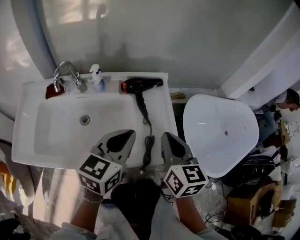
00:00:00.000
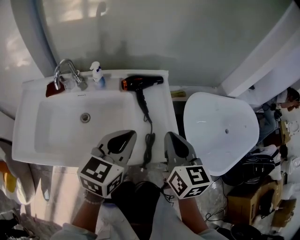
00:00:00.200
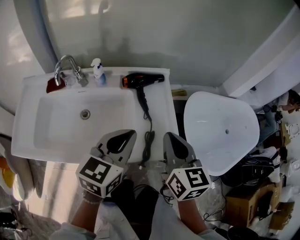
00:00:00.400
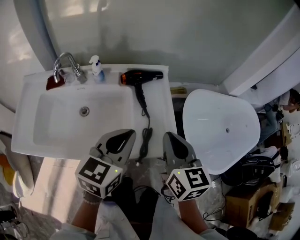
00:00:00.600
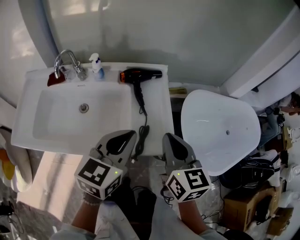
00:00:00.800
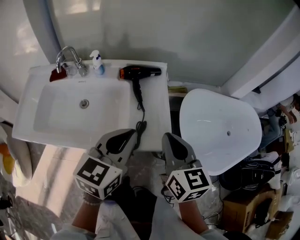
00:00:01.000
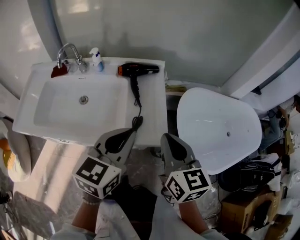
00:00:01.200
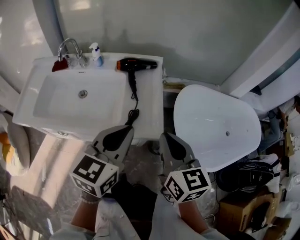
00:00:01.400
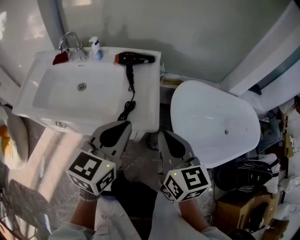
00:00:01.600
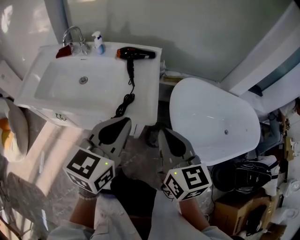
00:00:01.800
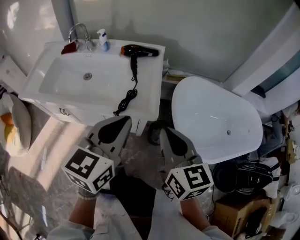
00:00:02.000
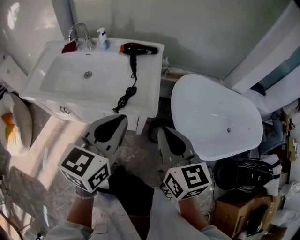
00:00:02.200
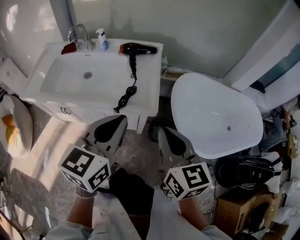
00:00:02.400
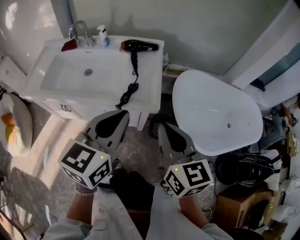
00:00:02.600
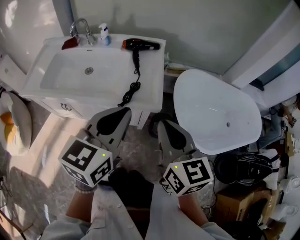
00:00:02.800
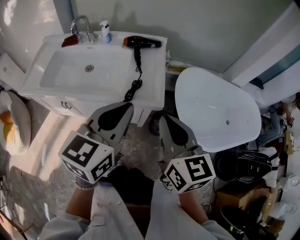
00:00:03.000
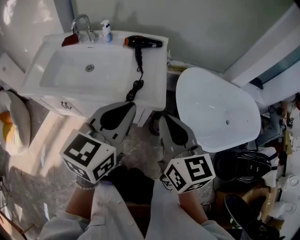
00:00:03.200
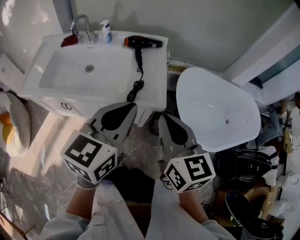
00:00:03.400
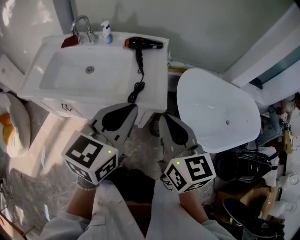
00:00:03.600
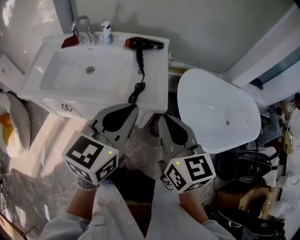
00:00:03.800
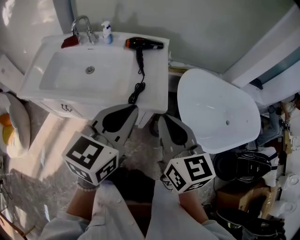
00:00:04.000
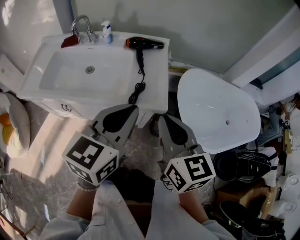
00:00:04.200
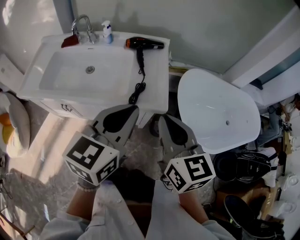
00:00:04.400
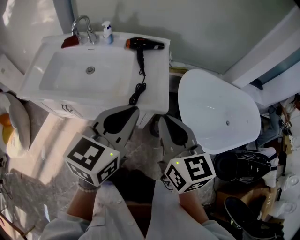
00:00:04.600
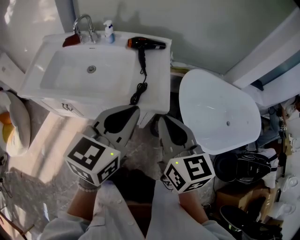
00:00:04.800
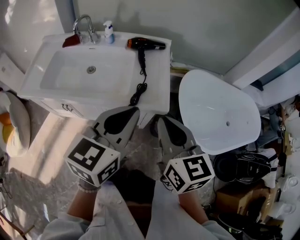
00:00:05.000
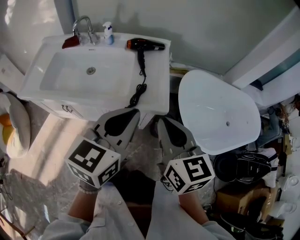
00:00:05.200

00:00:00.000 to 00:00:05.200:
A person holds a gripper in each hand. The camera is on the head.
00:00:00.000 to 00:00:01.800: The two grippers go some 25 cm backward and to the right.
00:00:01.800 to 00:00:03.400: The right gripper travels to the left by about 5 cm, while the left gripper changes place by some 5 cm.
00:00:03.400 to 00:00:05.200: The grippers move only a little.

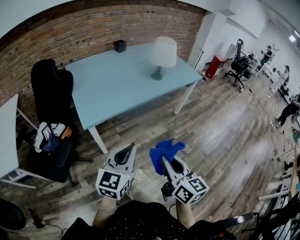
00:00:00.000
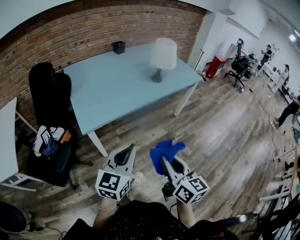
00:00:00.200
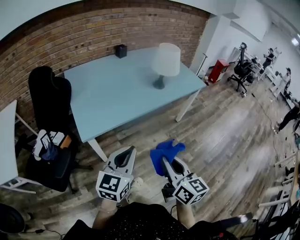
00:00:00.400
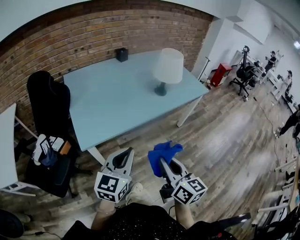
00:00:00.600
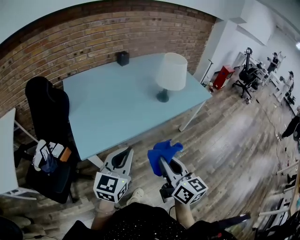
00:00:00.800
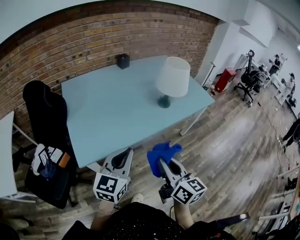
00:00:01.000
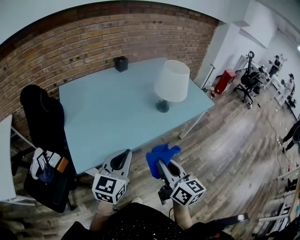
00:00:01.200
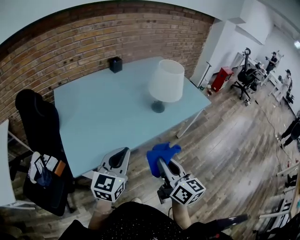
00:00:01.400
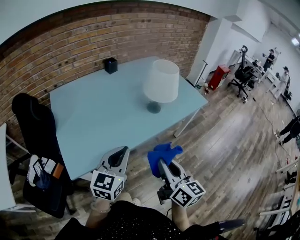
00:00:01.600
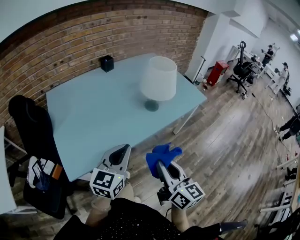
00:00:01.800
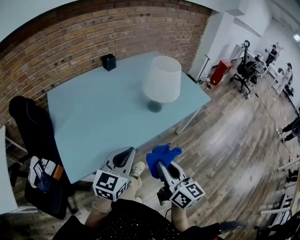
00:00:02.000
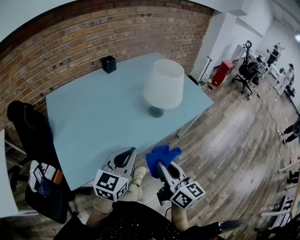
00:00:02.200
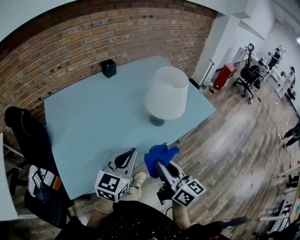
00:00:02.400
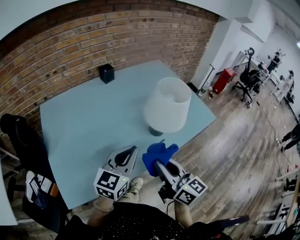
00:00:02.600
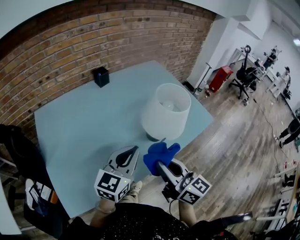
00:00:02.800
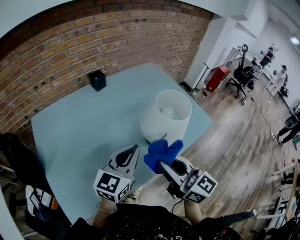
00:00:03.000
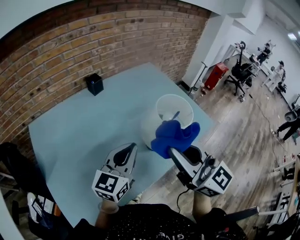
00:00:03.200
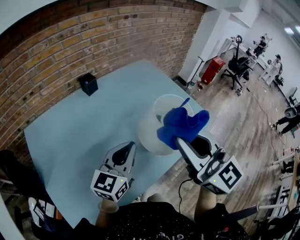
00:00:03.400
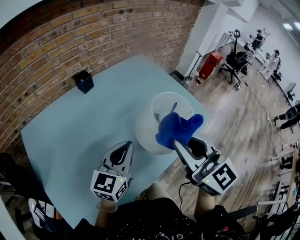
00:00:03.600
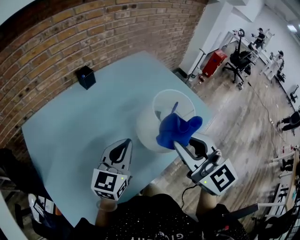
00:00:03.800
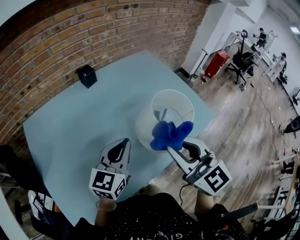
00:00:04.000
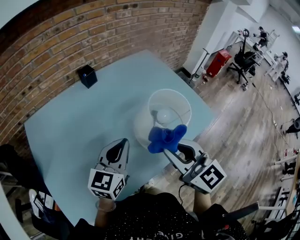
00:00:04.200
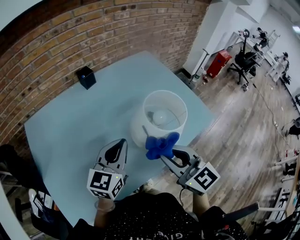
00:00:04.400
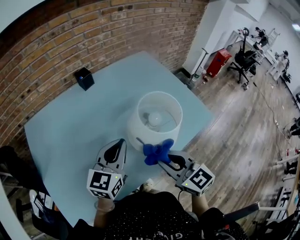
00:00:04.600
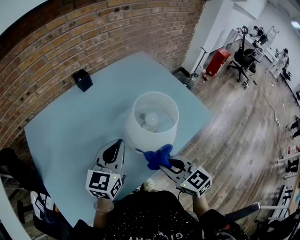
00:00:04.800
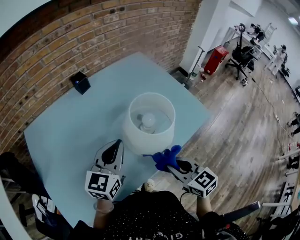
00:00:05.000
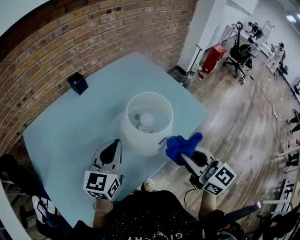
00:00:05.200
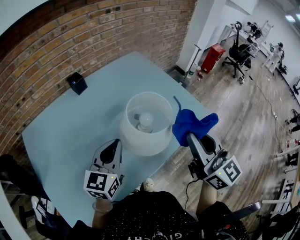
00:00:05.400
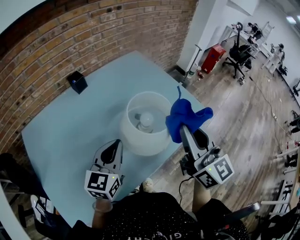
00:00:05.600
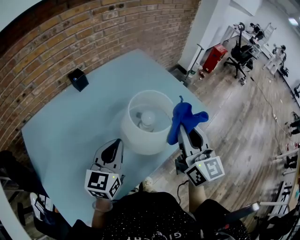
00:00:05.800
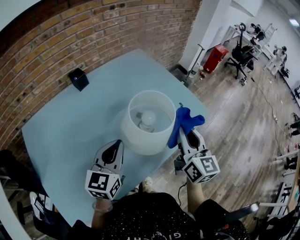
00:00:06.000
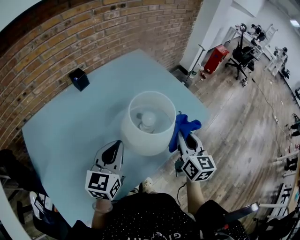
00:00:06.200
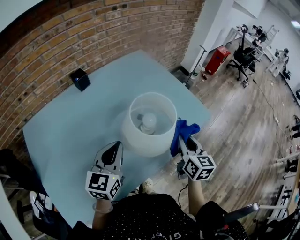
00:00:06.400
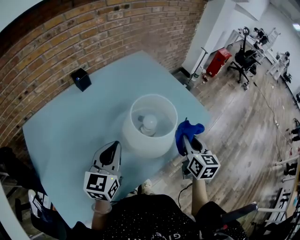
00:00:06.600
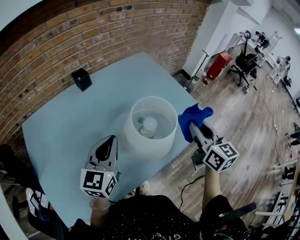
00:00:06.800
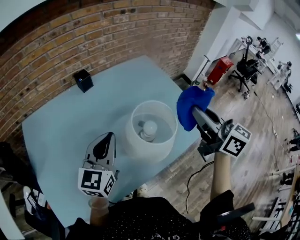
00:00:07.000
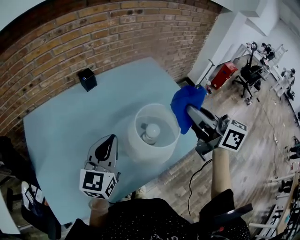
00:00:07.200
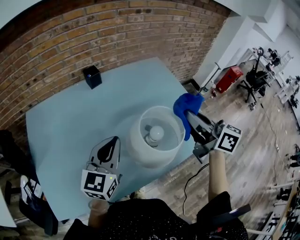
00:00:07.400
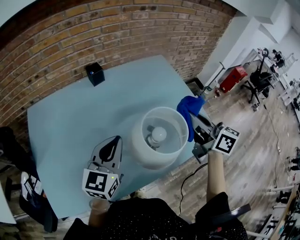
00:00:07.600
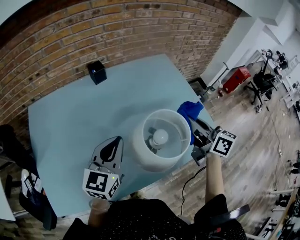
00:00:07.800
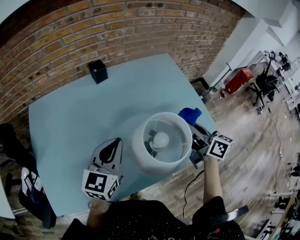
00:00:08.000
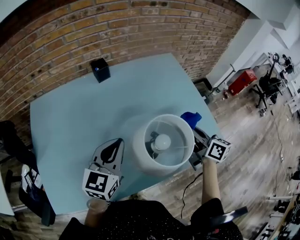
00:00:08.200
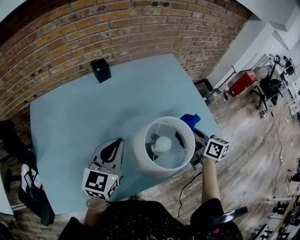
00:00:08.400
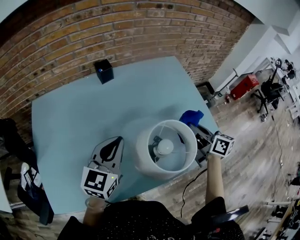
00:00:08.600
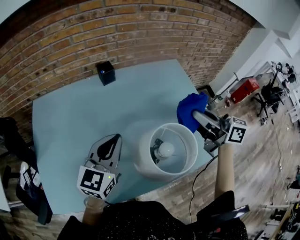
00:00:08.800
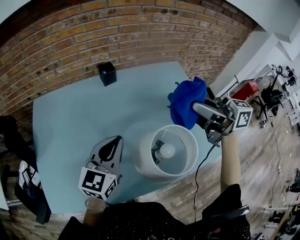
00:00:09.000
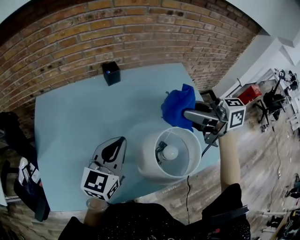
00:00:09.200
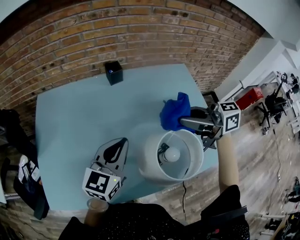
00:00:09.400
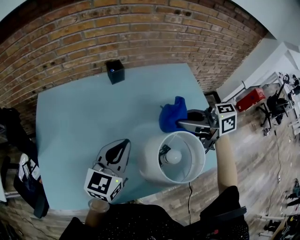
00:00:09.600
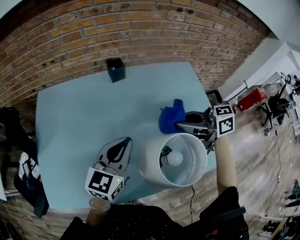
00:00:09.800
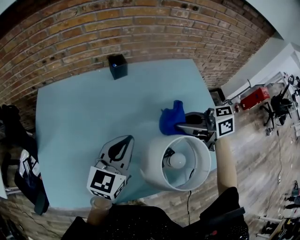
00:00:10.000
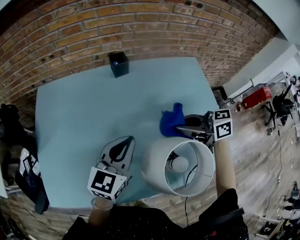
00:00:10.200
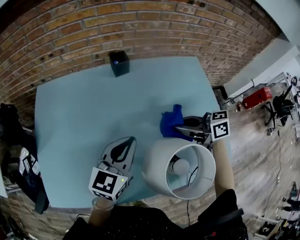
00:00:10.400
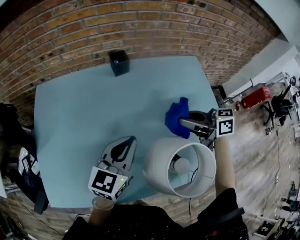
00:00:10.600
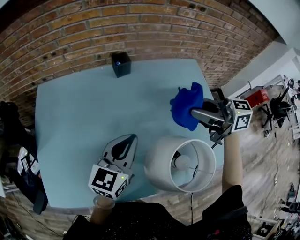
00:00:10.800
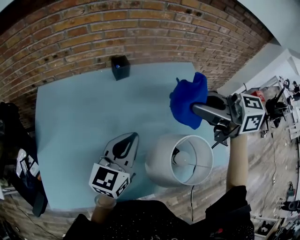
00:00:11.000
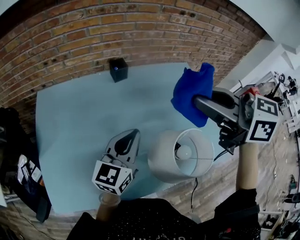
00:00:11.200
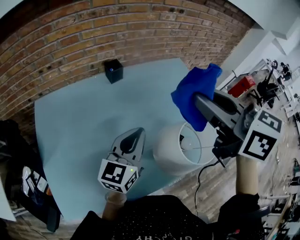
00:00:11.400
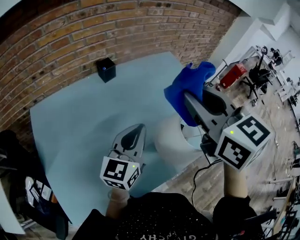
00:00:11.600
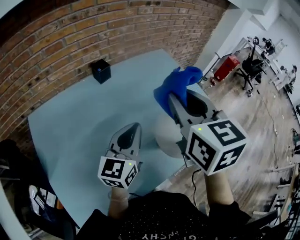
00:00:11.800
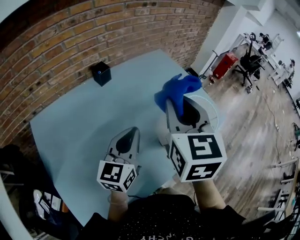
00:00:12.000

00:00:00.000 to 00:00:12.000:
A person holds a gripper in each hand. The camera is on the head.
00:00:00.000 to 00:00:01.600: Both grippers travel together forward, some 30 cm.
00:00:01.600 to 00:00:03.000: The two grippers go approximately 25 cm forward. The right gripper rotates some 20 degrees.
00:00:03.000 to 00:00:04.400: The left gripper goes approximately 5 cm forward, while the right gripper moves forward and to the right, approximately 10 cm, travels upward and back again, approximately 10 cm each way, and changes its angle by some 20 degrees.
00:00:04.400 to 00:00:06.000: The right gripper goes up and down, roughly 20 cm each way, reversing 2 times, and swivels about 40 degrees.
00:00:06.000 to 00:00:07.600: The right gripper goes up and down, about 20 cm each way, reversing 2 times, and changes its angle by roughly 40 degrees. Meanwhile the left gripper shifts by approximately 5 cm.
00:00:07.600 to 00:00:09.000: The right gripper goes approximately 10 cm forward and to the left, reaches about 15 cm downward, then returns, and rotates approximately 40 degrees.
00:00:09.000 to 00:00:10.400: The right gripper shifts roughly 20 cm downward, and changes its angle by roughly 30 degrees, while the left gripper changes place by some 5 cm.
00:00:10.400 to 00:00:12.000: The right gripper shifts roughly 20 cm upward, and swivels roughly 90 degrees; the left gripper ends up approximately 10 cm from where it was.

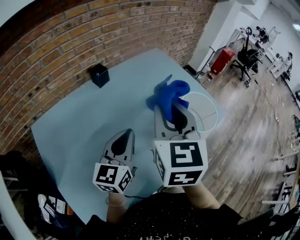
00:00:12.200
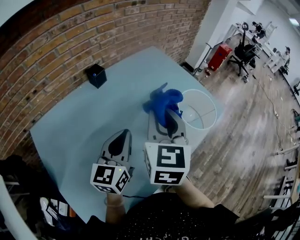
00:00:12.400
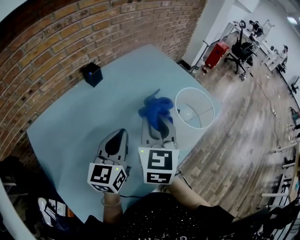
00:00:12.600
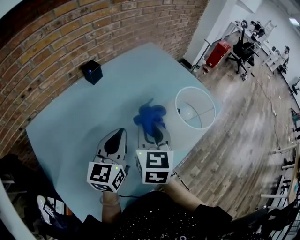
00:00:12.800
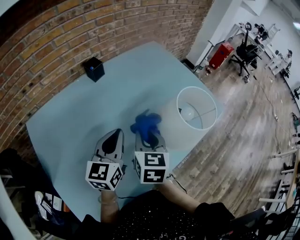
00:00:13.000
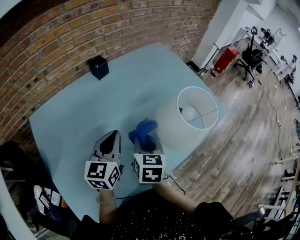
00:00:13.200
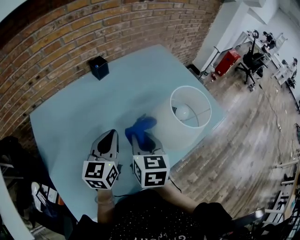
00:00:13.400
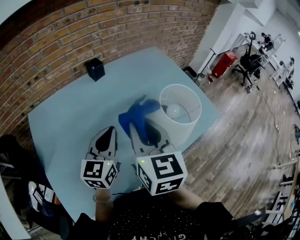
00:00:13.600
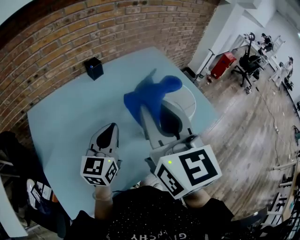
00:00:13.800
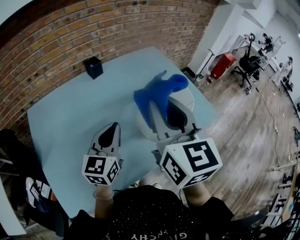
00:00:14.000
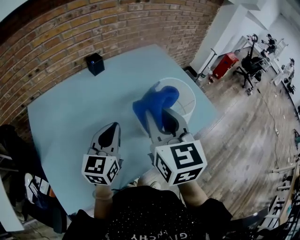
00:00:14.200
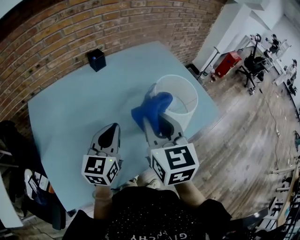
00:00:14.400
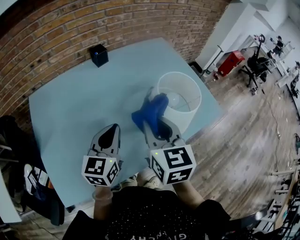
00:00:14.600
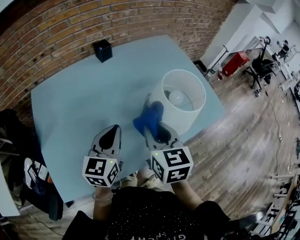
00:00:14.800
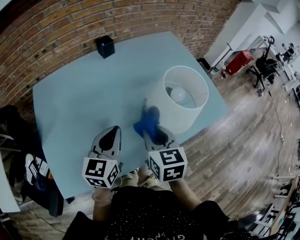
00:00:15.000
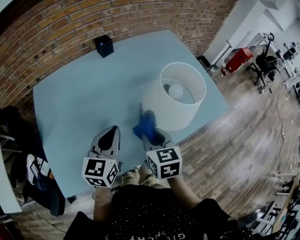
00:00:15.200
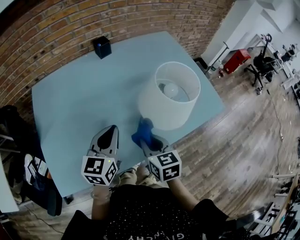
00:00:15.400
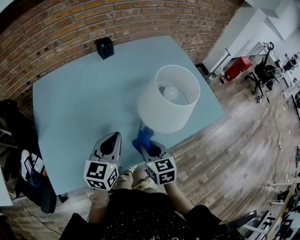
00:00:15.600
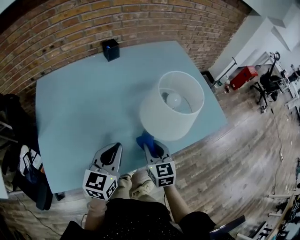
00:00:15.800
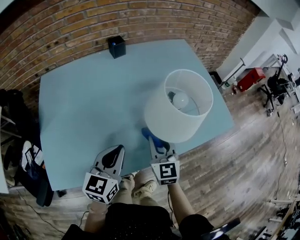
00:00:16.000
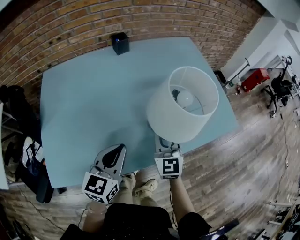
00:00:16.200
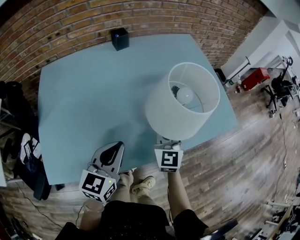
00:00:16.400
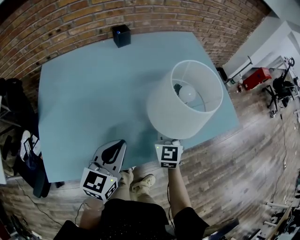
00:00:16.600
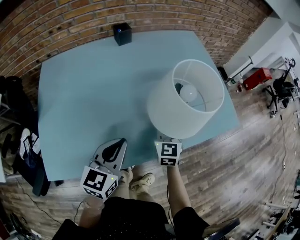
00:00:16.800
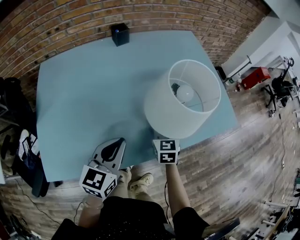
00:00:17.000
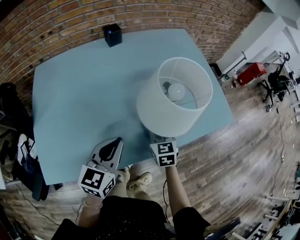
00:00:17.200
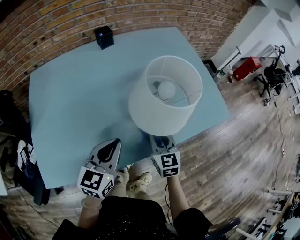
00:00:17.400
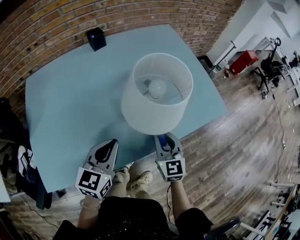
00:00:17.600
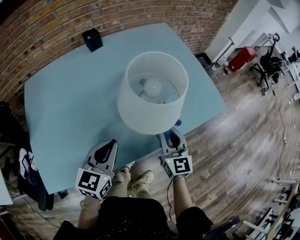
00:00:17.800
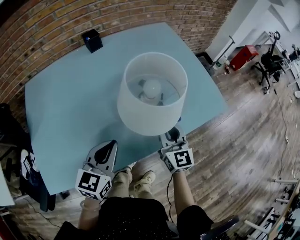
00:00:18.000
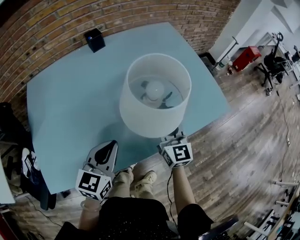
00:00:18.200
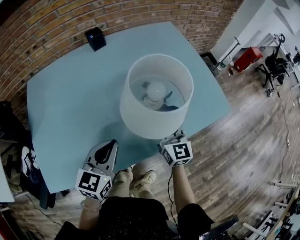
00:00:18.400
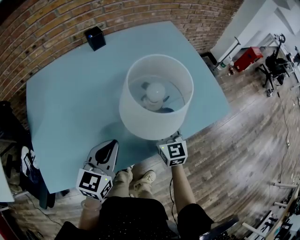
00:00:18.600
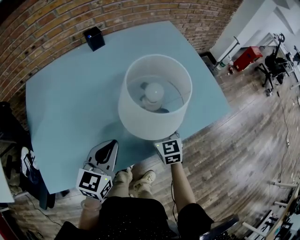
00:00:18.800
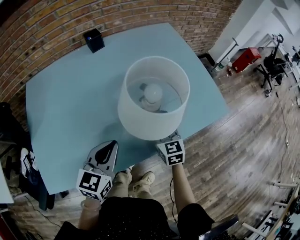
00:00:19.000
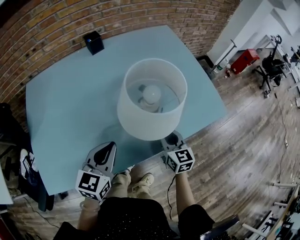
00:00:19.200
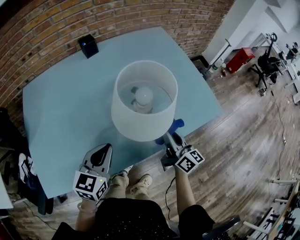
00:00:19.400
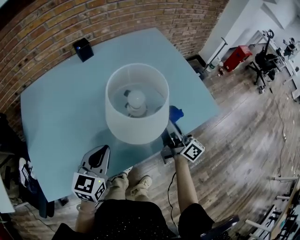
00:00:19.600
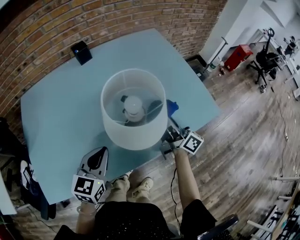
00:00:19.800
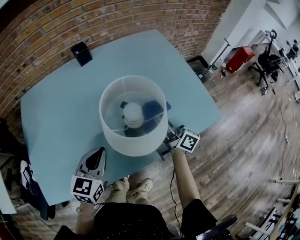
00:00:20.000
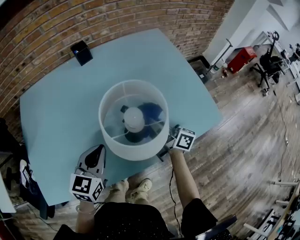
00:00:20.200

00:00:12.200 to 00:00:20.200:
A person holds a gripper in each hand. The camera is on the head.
00:00:12.200 to 00:00:13.800: The right gripper shifts roughly 10 cm backward, goes downward and returns, about 20 cm each way, and turns by some 30 degrees.
00:00:13.800 to 00:00:15.400: The right gripper shifts some 30 cm downward, and points its fingers some 30 degrees further downward. Meanwhile the left gripper moves backward and downward, approximately 10 cm.
00:00:15.400 to 00:00:17.000: The right gripper shifts some 15 cm forward, downward and to the right, while the left gripper shifts by approximately 5 cm.
00:00:17.000 to 00:00:18.600: The right gripper moves to the right, some 5 cm.
00:00:18.600 to 00:00:20.200: Both grippers travel together forward, about 5 cm. The right gripper rotates around the line of its fingers by roughly 60 degrees, clockwise from behind.
